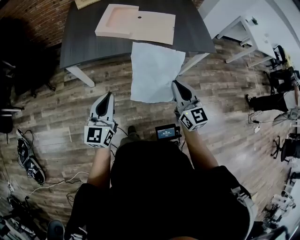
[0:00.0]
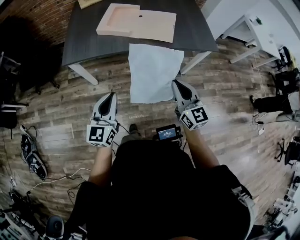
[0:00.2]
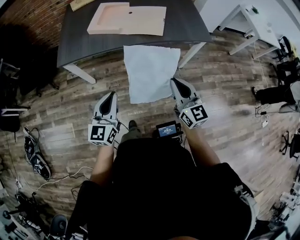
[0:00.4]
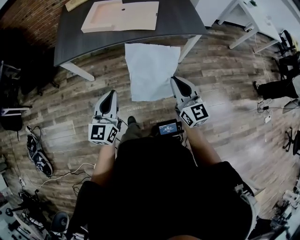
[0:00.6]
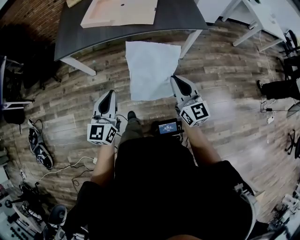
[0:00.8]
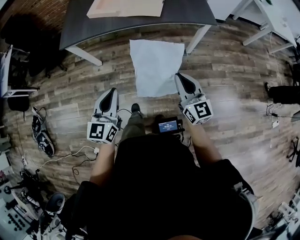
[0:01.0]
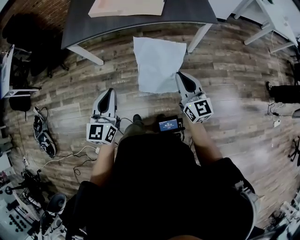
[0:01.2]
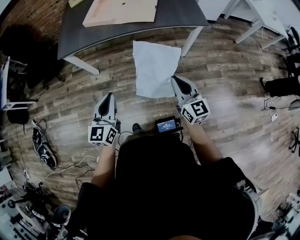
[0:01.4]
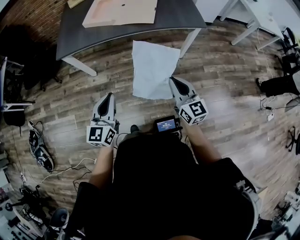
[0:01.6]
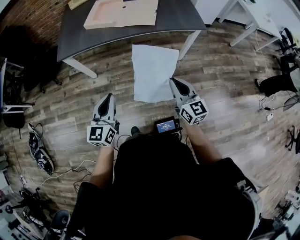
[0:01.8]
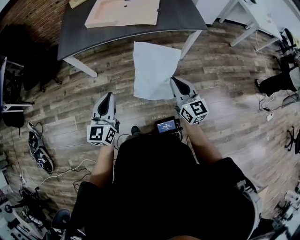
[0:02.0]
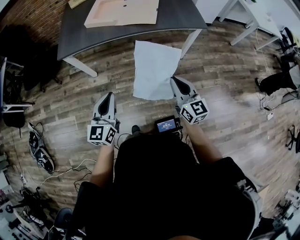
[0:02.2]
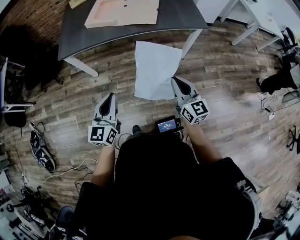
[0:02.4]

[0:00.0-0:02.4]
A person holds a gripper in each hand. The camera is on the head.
0:00.0 to 0:01.2: The grippers both shift to the right and backward by approximately 20 cm.
0:01.2 to 0:02.4: There are only small adjustments of the grippers.

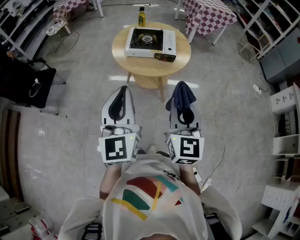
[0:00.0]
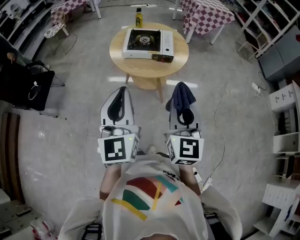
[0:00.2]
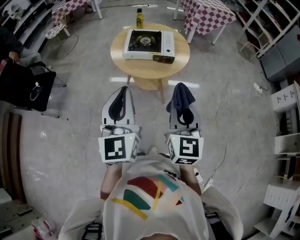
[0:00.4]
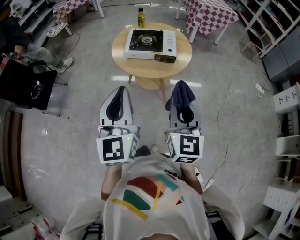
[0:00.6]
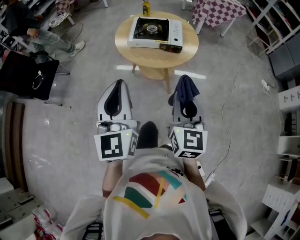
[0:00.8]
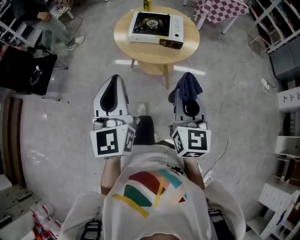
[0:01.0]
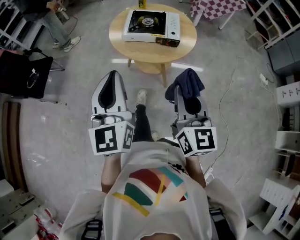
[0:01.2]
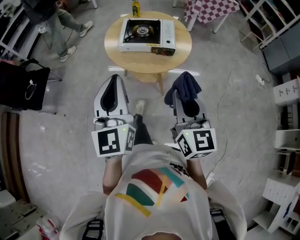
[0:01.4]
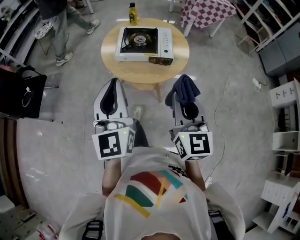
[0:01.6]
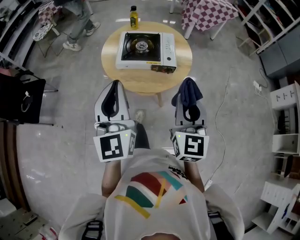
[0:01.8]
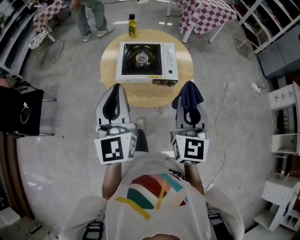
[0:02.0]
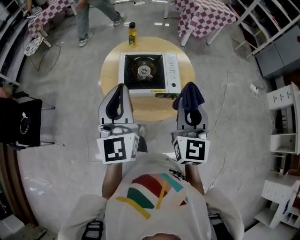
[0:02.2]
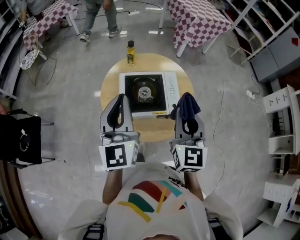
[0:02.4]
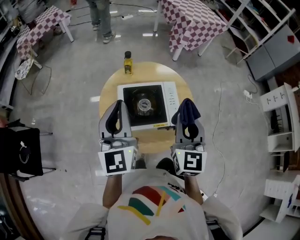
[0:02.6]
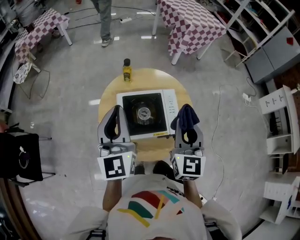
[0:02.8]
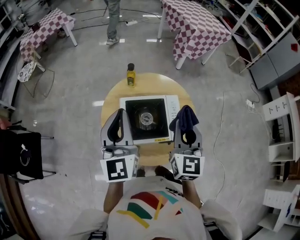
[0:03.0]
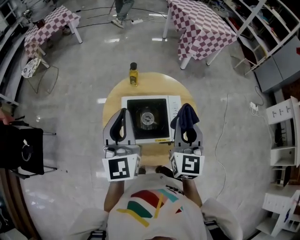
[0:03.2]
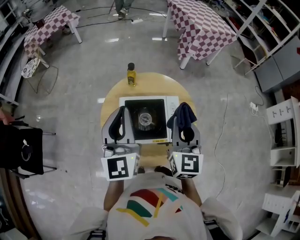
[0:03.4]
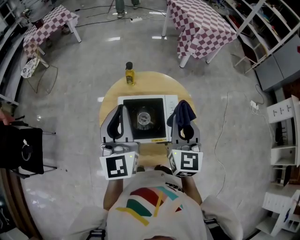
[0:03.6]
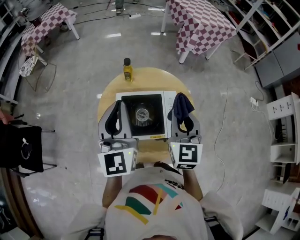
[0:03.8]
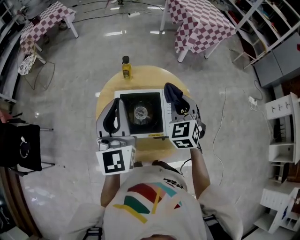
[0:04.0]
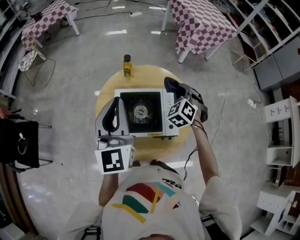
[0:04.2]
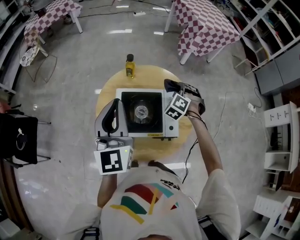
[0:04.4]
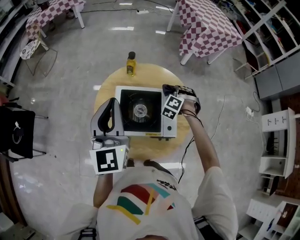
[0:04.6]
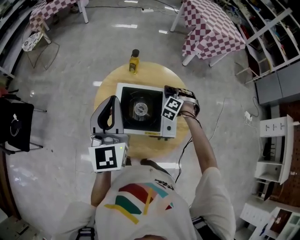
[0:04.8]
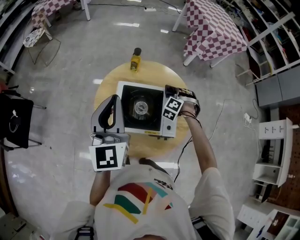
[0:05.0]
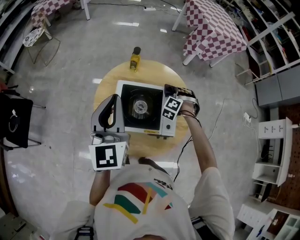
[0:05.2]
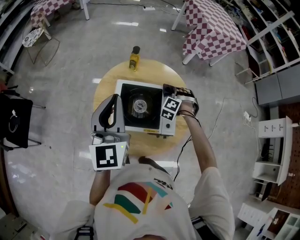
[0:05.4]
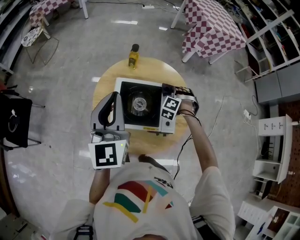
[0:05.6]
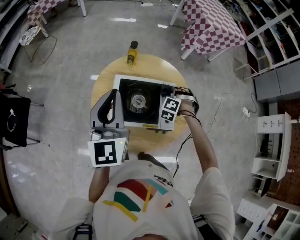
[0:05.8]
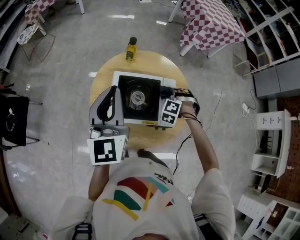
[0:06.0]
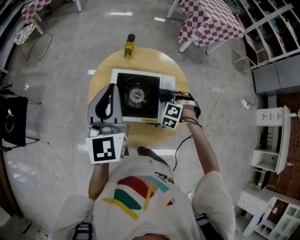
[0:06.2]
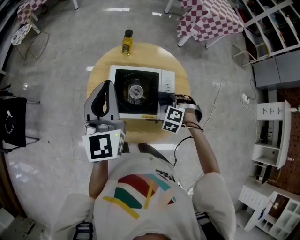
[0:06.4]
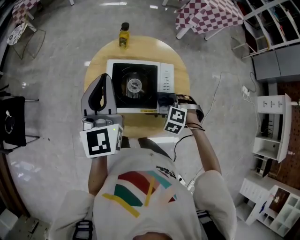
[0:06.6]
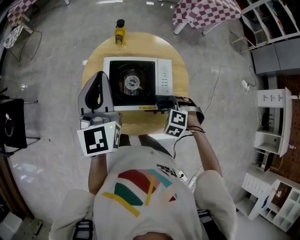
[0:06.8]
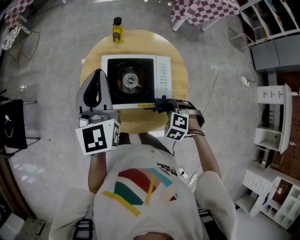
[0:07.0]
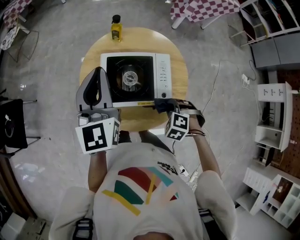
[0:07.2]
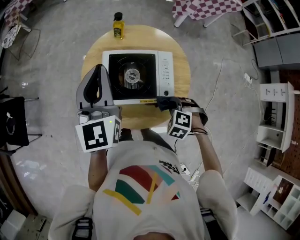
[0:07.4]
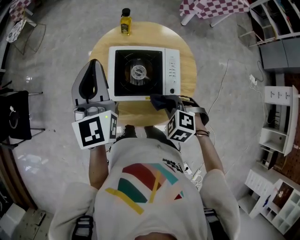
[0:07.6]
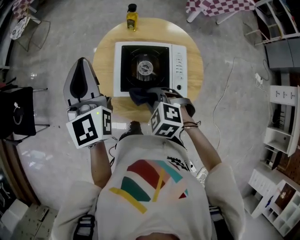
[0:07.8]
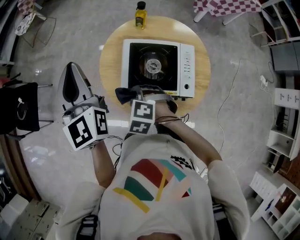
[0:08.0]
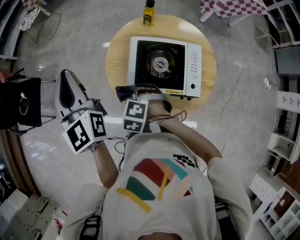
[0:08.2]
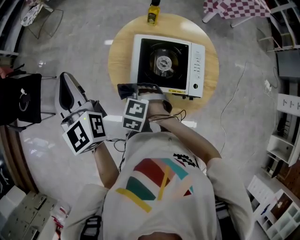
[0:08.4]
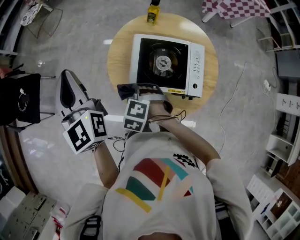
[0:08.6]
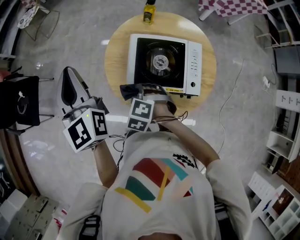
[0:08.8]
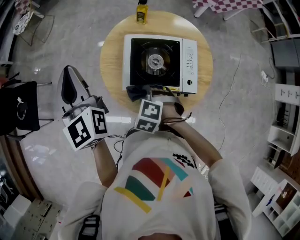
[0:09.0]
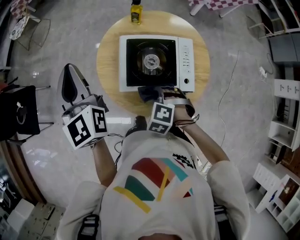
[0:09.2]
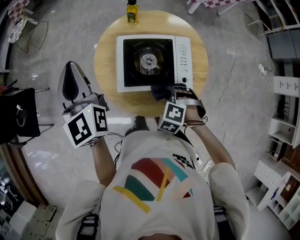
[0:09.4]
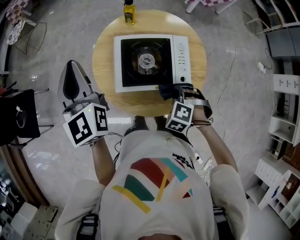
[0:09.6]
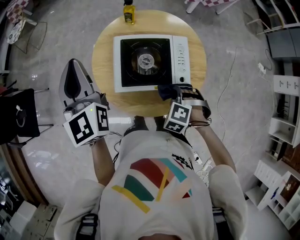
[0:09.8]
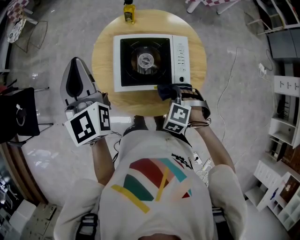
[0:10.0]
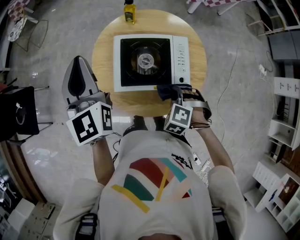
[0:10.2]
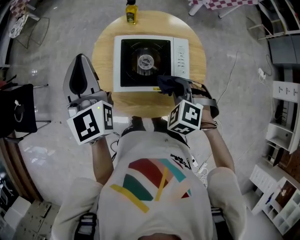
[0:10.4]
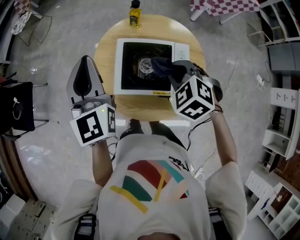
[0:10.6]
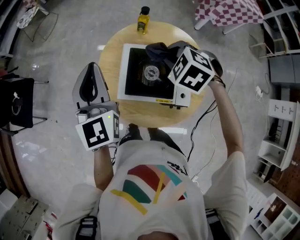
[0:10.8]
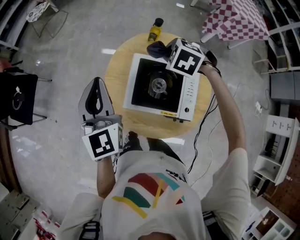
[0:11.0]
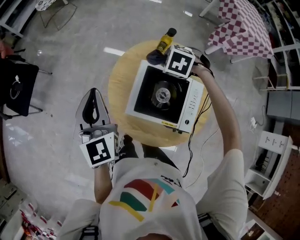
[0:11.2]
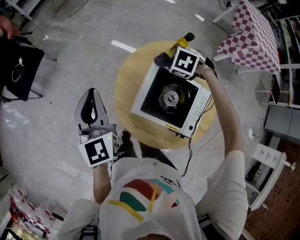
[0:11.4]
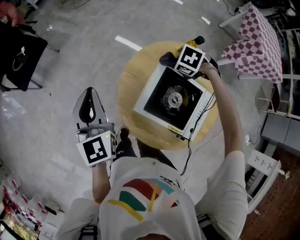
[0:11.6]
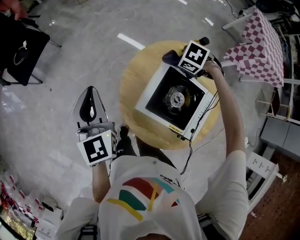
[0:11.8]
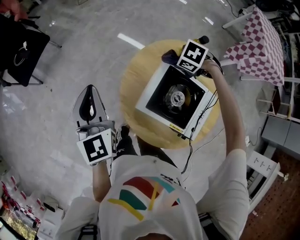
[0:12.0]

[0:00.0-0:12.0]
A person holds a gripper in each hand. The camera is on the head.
0:00.0 to 0:01.6: The two grippers go roughly 10 cm forward.
0:01.6 to 0:03.0: Both grippers travel together forward, some 35 cm.
0:03.0 to 0:04.4: The right gripper heads forward and downward, covering about 25 cm, and rotates around the line of its fingers by about 70 degrees, counterclockwise from behind.
0:04.4 to 0:06.0: The right gripper travels downward and backward by roughly 10 cm, and swivels roughly 30 degrees.
0:06.0 to 0:07.6: The right gripper moves approximately 20 cm, and turns by about 30 degrees.
0:07.6 to 0:09.0: The right gripper heads to the left and forward, covering roughly 15 cm. The left gripper heads to the left, covering about 15 cm.
0:09.0 to 0:10.4: The right gripper is displaced to the right and upward by about 15 cm. Meanwhile the left gripper travels to the right by about 10 cm.
0:10.4 to 0:12.0: The left gripper ends up roughly 20 cm from where it was, and turns by roughly 30 degrees. Meanwhile the right gripper shifts by approximately 30 cm, and turns by some 40 degrees.

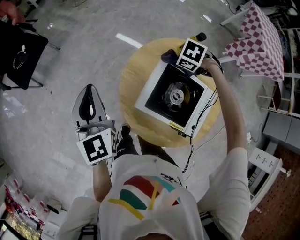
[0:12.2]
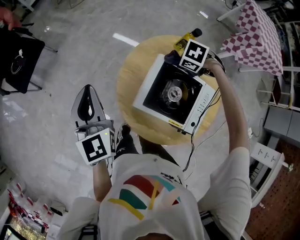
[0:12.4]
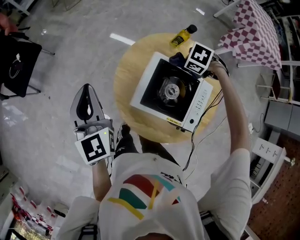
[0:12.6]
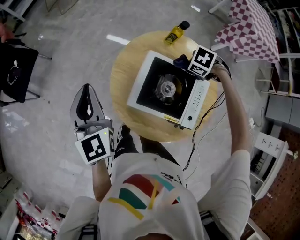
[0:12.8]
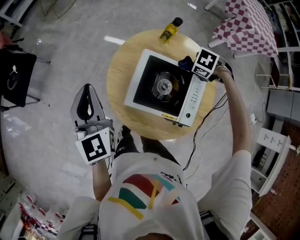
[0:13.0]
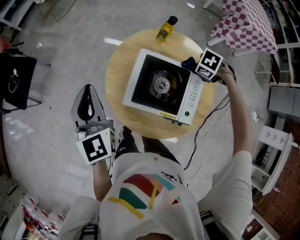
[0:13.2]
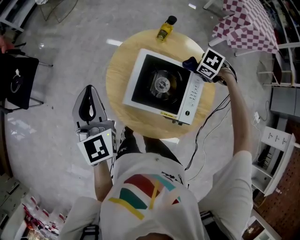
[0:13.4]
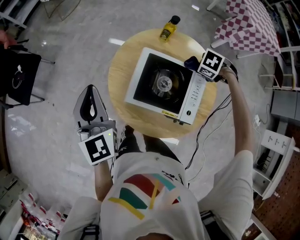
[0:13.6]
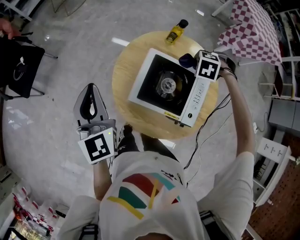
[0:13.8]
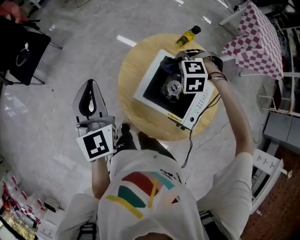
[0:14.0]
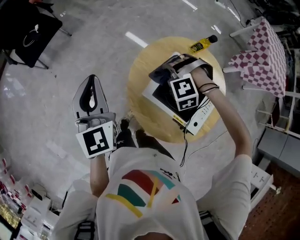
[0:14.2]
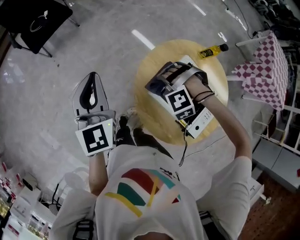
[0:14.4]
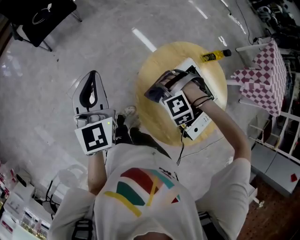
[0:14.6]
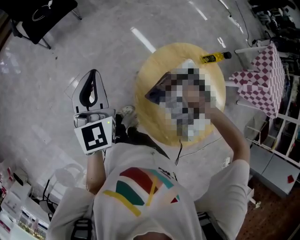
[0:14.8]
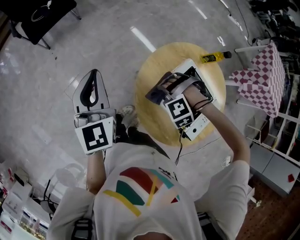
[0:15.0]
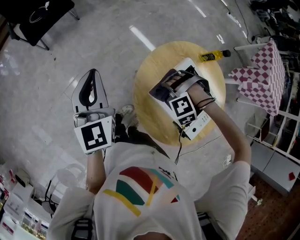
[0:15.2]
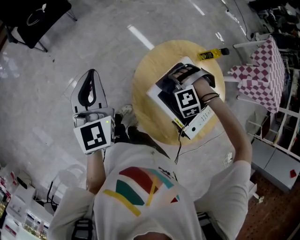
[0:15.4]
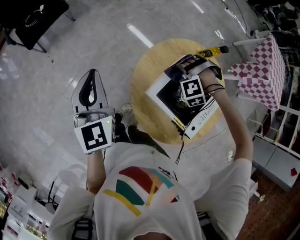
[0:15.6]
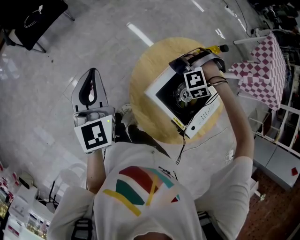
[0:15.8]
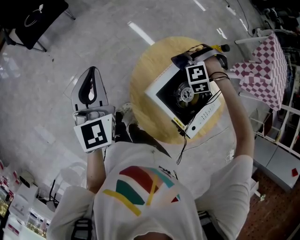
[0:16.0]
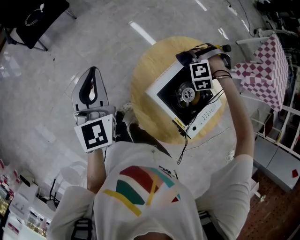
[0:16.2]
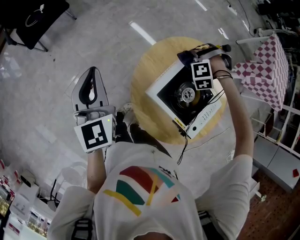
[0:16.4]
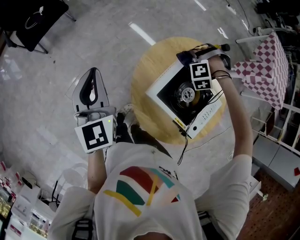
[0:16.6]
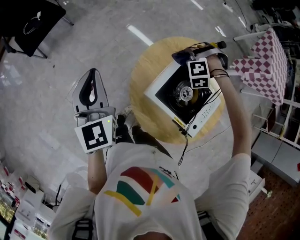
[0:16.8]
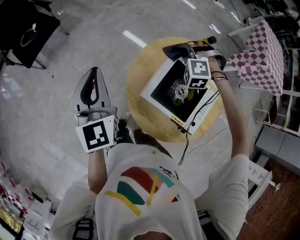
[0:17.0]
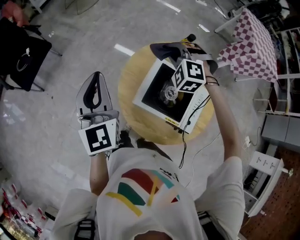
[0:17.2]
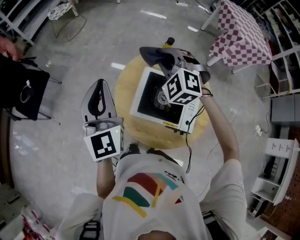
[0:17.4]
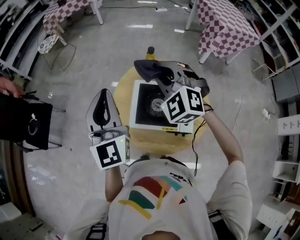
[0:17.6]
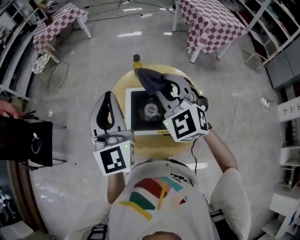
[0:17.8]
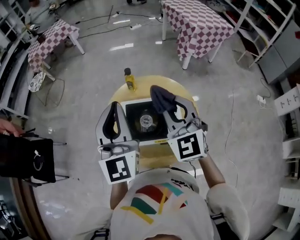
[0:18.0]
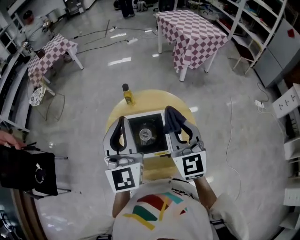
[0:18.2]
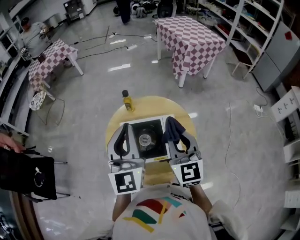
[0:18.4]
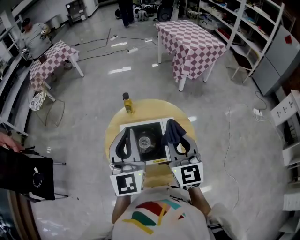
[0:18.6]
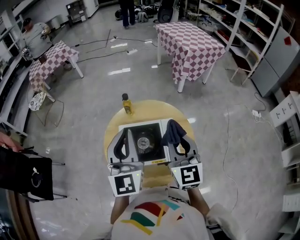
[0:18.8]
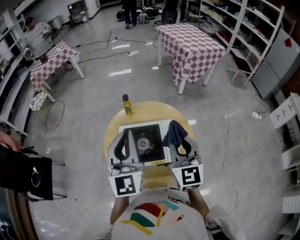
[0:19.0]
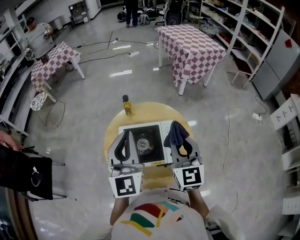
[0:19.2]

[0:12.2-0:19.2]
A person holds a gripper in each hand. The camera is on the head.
0:12.2 to 0:13.6: The left gripper ends up roughly 10 cm from where it was, while the right gripper moves approximately 20 cm.
0:13.6 to 0:15.0: The left gripper shifts by about 15 cm, and turns by approximately 20 degrees; the right gripper ends up some 35 cm from where it was, and twists roughly 90 degrees counterclockwise, seen from behind.
0:15.0 to 0:16.4: The right gripper shifts by approximately 25 cm, and rotates about 20 degrees.
0:16.4 to 0:17.8: The right gripper heads upward and backward, covering some 35 cm, and rotates around the line of its fingers by approximately 90 degrees, clockwise from behind. The left gripper travels to the right and upward by roughly 35 cm, and changes its angle by roughly 50 degrees.
0:17.8 to 0:19.2: The left gripper goes roughly 10 cm to the right; the right gripper heads to the right and backward, covering approximately 15 cm, and swivels some 40 degrees.

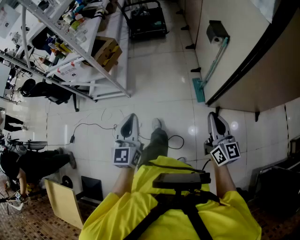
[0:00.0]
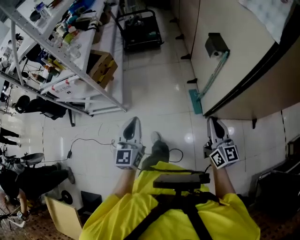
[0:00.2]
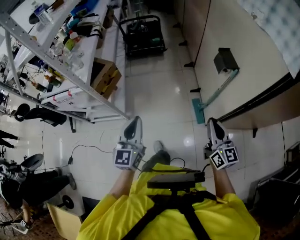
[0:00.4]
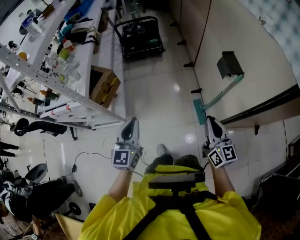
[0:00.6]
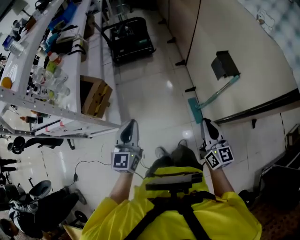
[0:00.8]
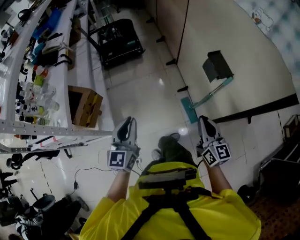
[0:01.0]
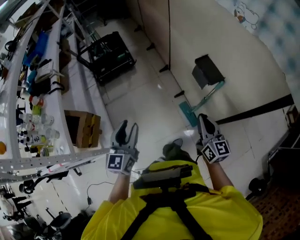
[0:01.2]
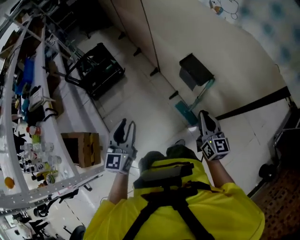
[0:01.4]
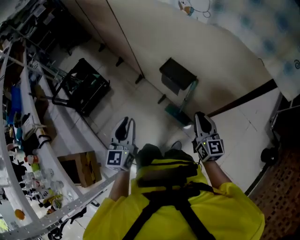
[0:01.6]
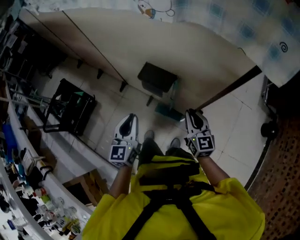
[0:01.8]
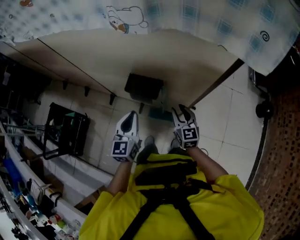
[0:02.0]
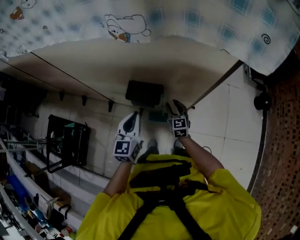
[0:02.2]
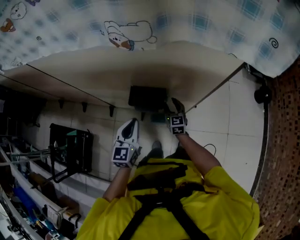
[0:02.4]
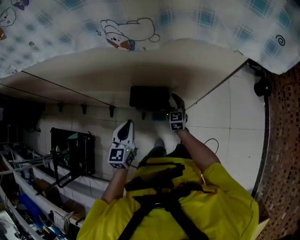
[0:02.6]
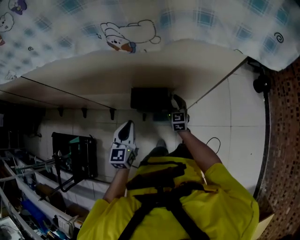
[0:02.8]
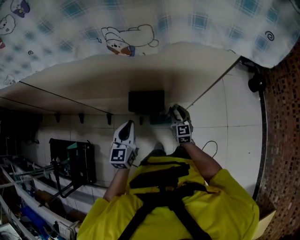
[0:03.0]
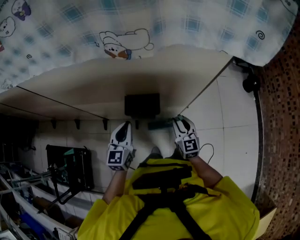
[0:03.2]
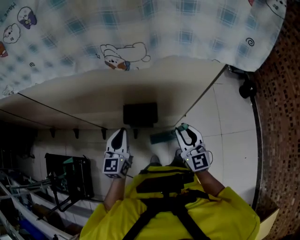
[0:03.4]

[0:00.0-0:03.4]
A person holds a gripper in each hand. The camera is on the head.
0:00.0 to 0:01.6: The pair of grippers is taken approximately 50 cm. The left gripper rotates about 40 degrees, and opens, while the right gripper changes its angle by about 40 degrees.
0:01.6 to 0:03.4: The left gripper moves approximately 25 cm, and rotates approximately 40 degrees; the right gripper goes downward and returns, approximately 20 cm each way, and rotates roughly 40 degrees.
